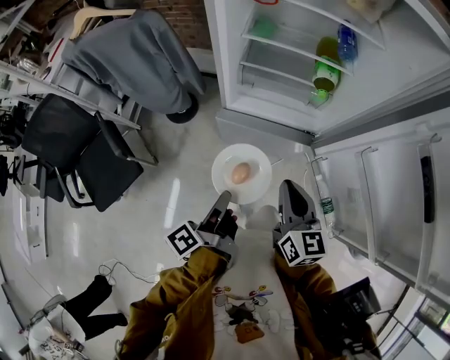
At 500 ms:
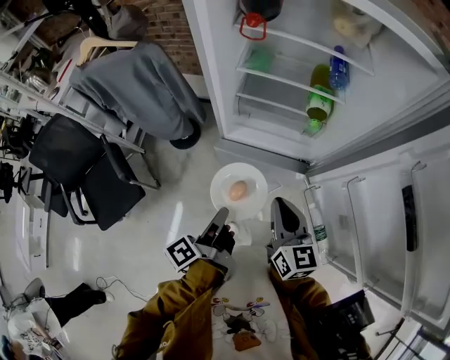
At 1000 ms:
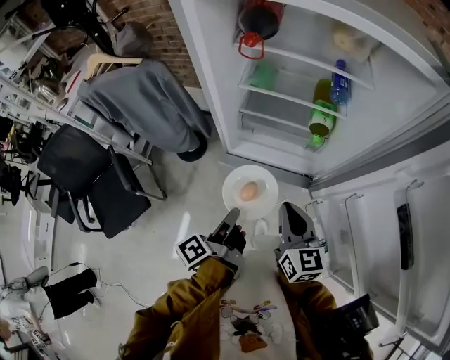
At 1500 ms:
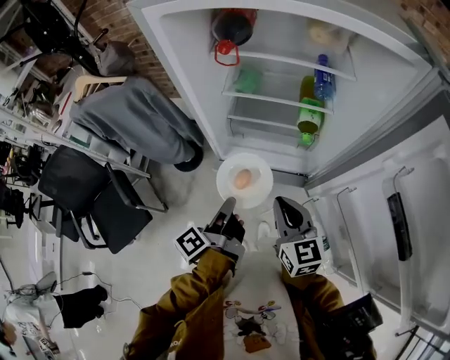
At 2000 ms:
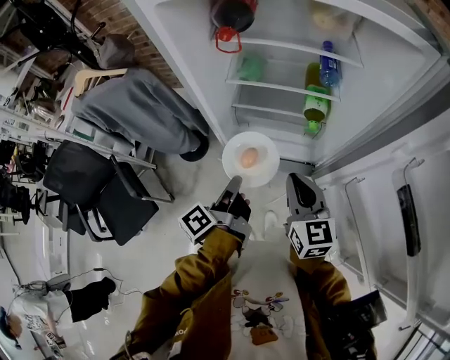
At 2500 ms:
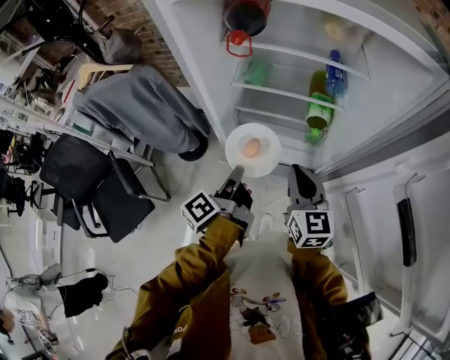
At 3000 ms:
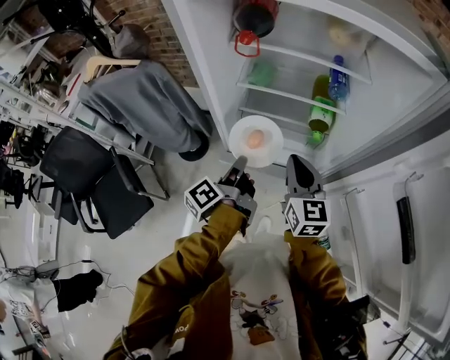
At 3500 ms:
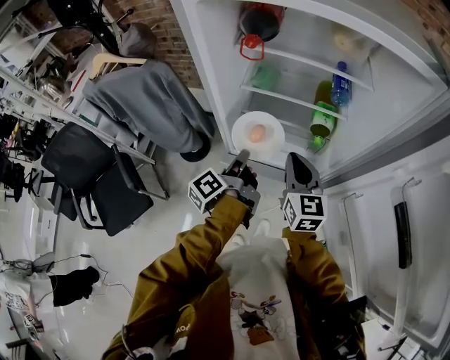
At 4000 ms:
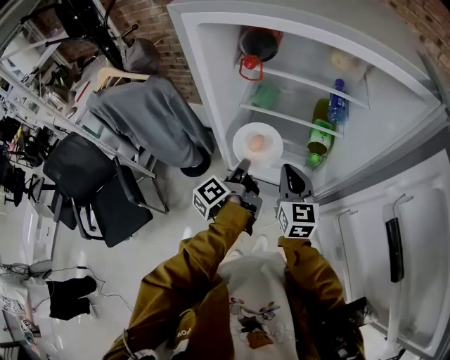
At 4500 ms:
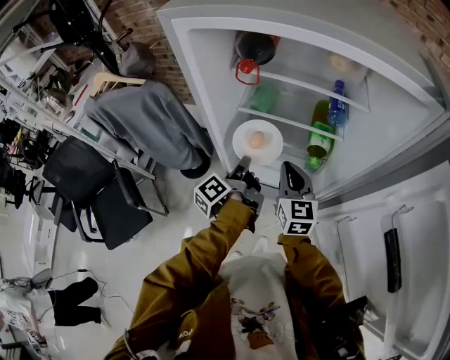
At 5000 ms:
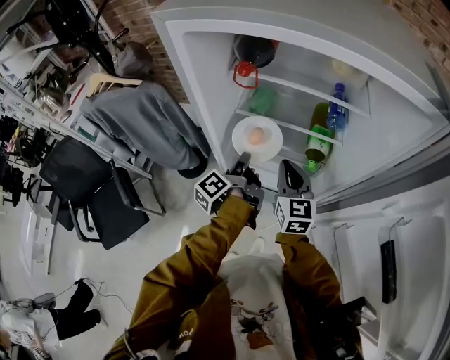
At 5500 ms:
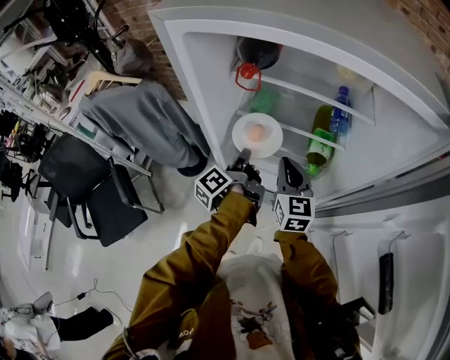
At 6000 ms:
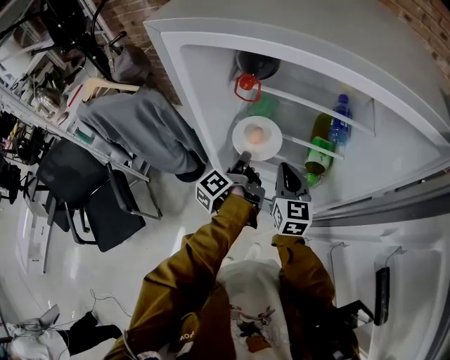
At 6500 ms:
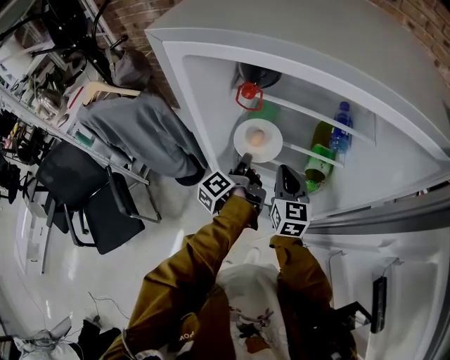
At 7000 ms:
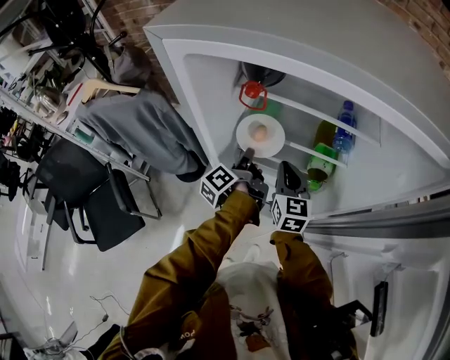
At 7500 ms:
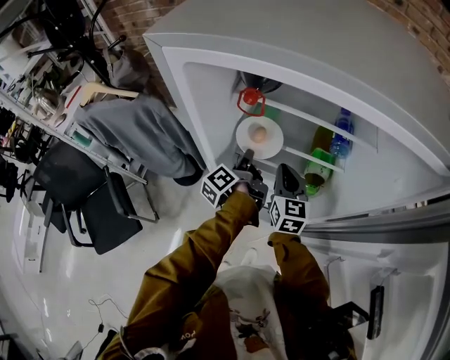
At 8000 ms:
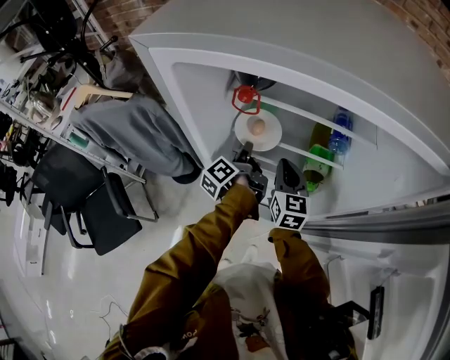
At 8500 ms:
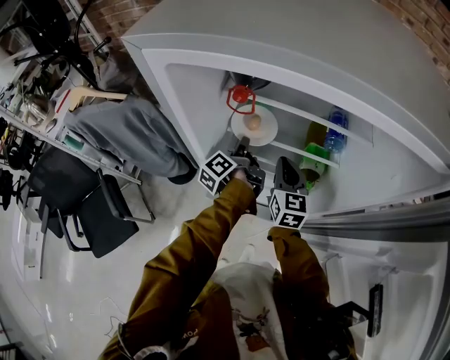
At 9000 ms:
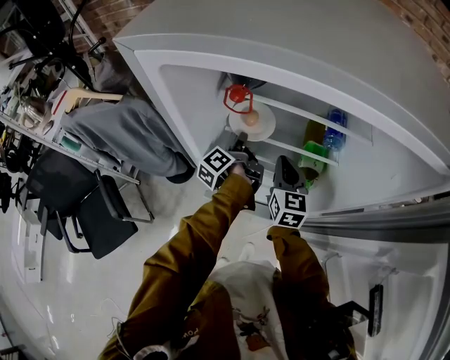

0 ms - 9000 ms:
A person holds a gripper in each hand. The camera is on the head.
0 ms - 2000 ms: The right gripper moves approximately 15 cm.
2000 ms - 4500 ms: The right gripper shifts by some 15 cm.
4500 ms - 7000 ms: The right gripper shifts by roughly 10 cm.

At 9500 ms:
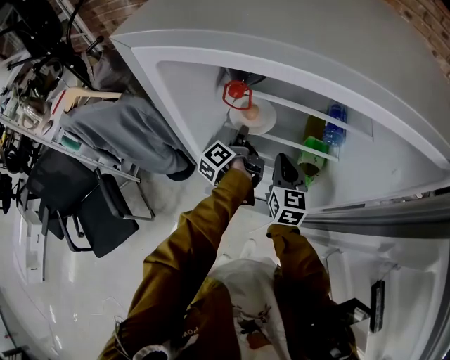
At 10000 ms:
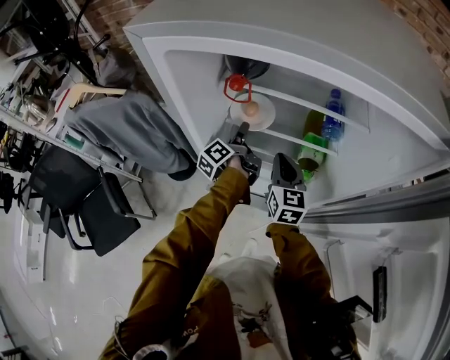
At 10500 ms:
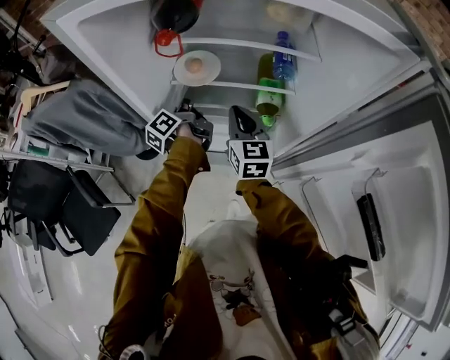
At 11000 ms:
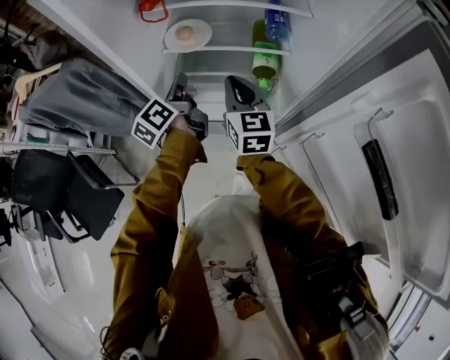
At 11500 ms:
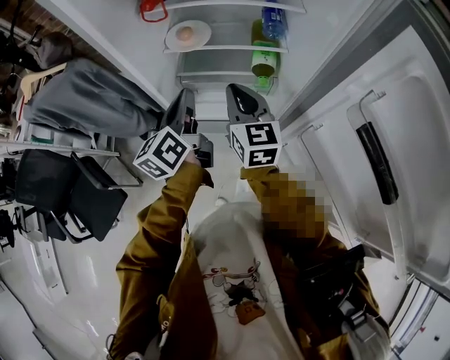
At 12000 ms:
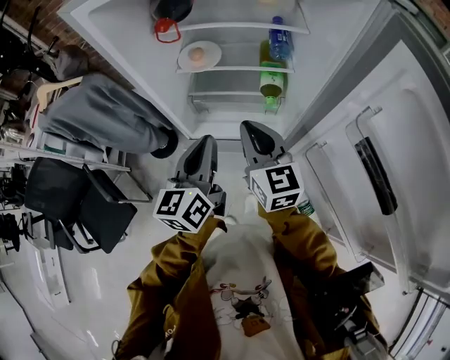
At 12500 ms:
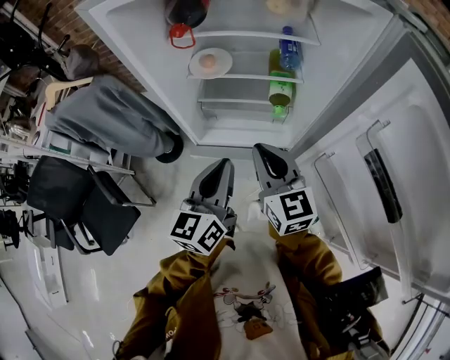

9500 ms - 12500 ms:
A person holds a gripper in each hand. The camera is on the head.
9500 ms - 11000 ms: The right gripper shifts by about 10 cm.
11000 ms - 12500 ms: The right gripper changes place by approximately 15 cm.

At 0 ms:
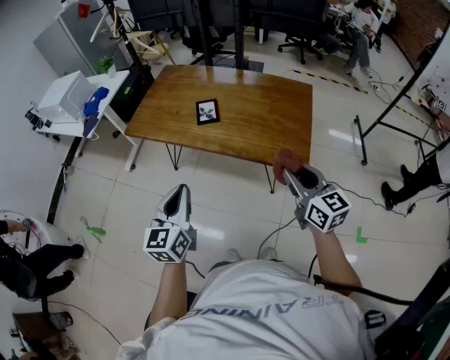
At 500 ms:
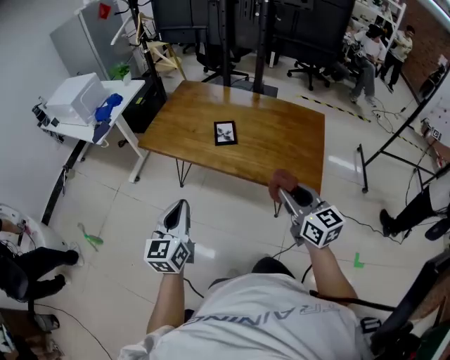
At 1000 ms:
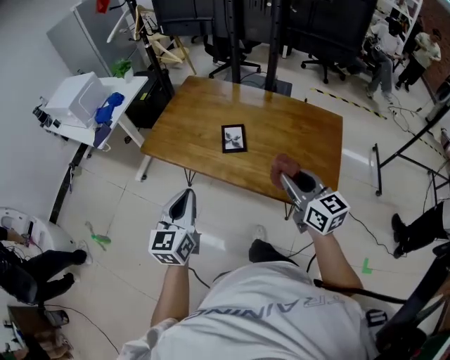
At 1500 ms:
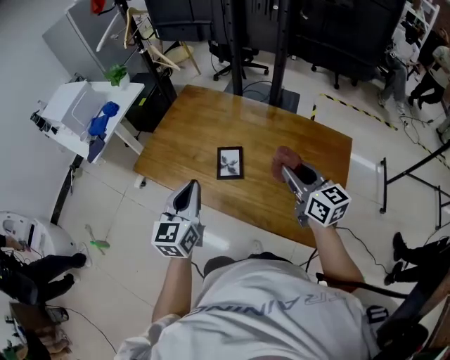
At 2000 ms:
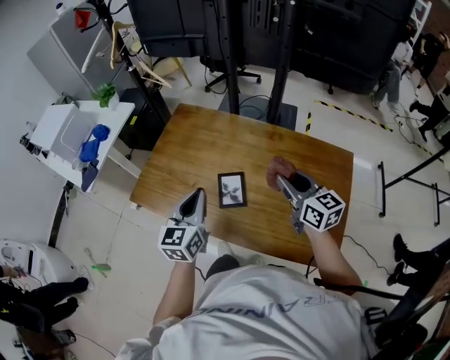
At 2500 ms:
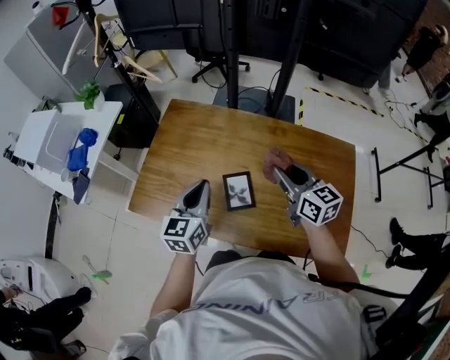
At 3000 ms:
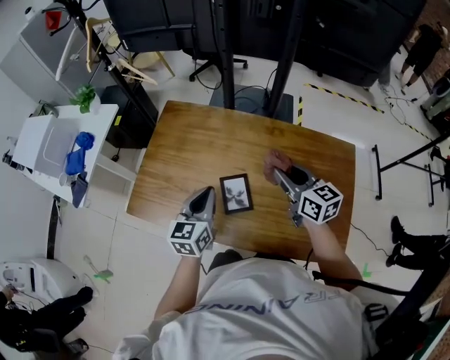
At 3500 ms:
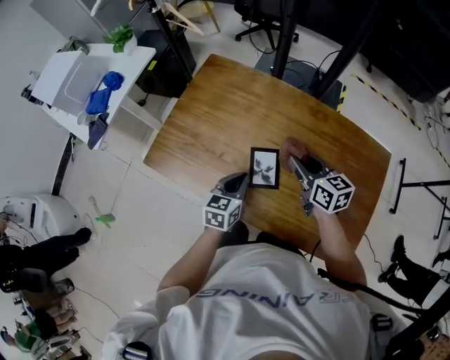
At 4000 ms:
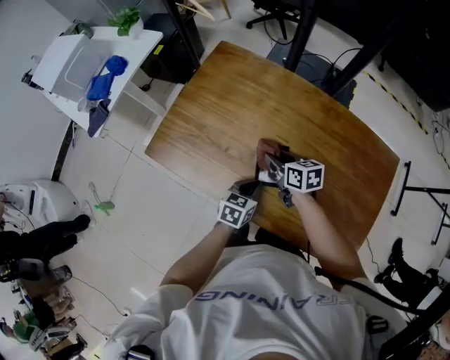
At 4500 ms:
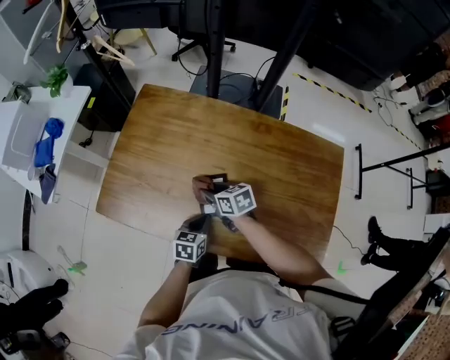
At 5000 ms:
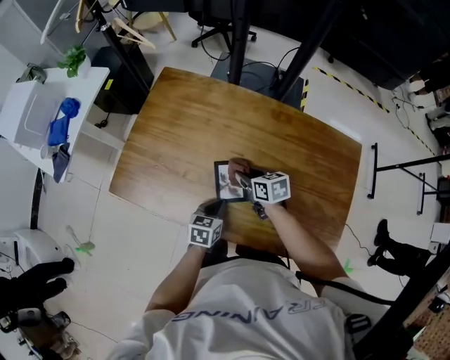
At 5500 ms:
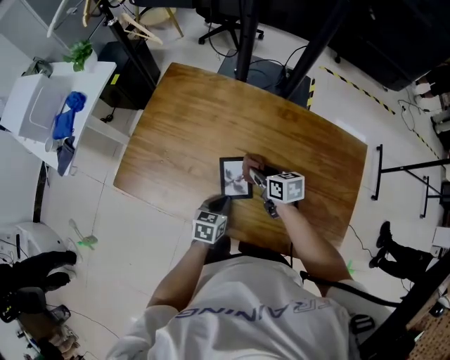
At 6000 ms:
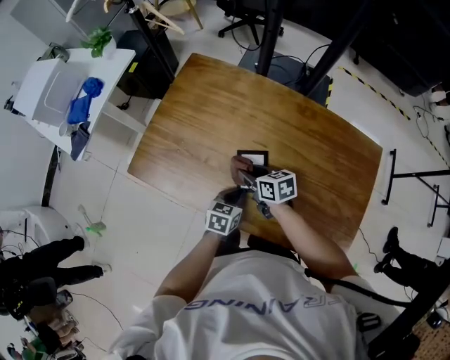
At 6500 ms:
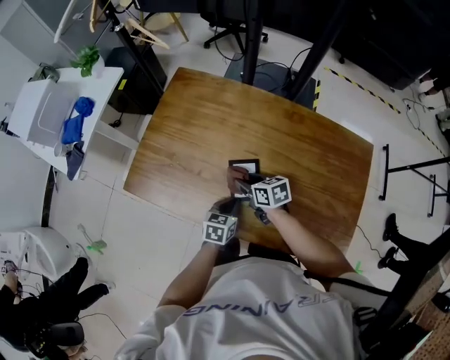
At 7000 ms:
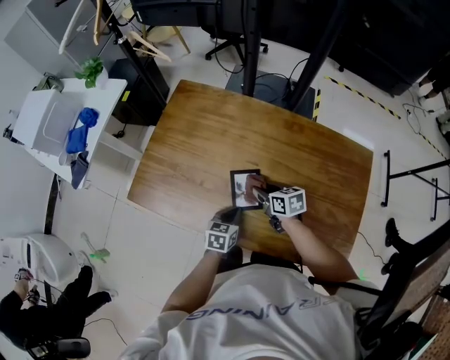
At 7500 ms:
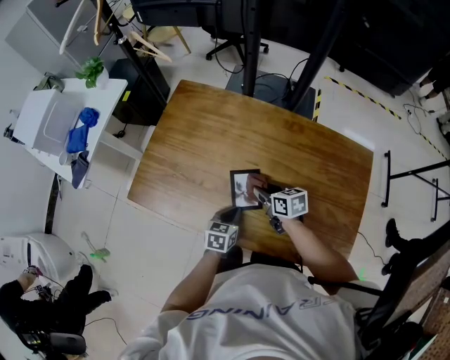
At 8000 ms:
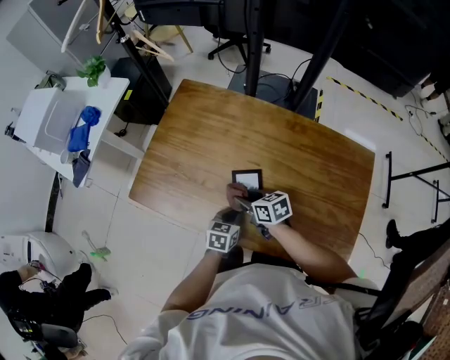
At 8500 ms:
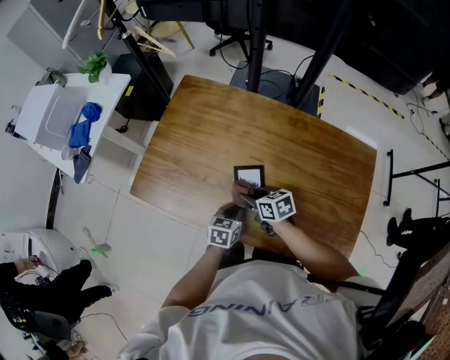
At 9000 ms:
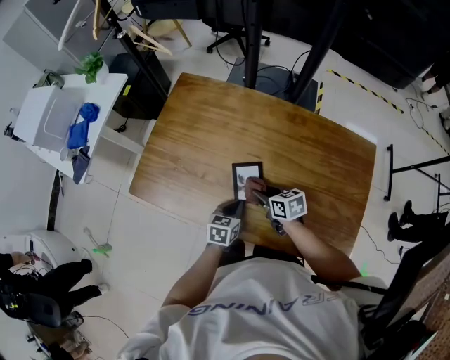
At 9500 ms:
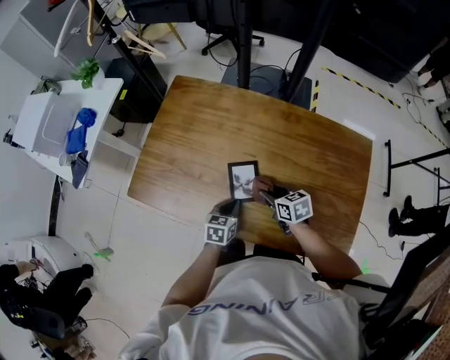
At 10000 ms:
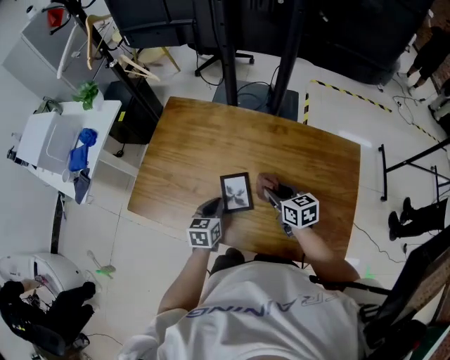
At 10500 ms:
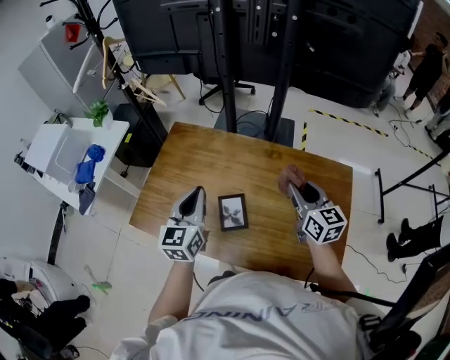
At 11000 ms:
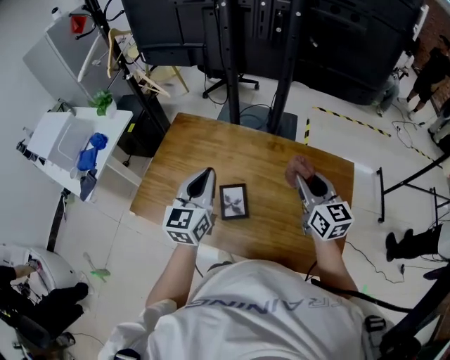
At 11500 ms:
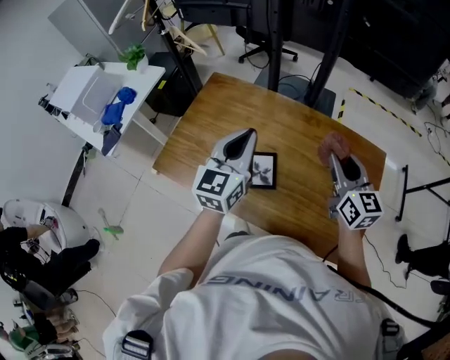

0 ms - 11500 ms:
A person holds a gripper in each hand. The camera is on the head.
0 ms - 2000 ms: Both grippers move forward, some 40 cm.
2000 ms - 4000 ms: The right gripper moves downward, to the left and forward, some 30 cm, and changes its angle by about 30 degrees, while the left gripper goes about 25 cm downward, and swivels roughly 40 degrees.
4000 ms - 6000 ms: The right gripper goes to the right and returns, roughly 10 cm each way.
6000 ms - 7500 ms: The right gripper goes approximately 5 cm to the right.
7500 ms - 9500 ms: The right gripper travels to the left and back again, some 10 cm each way.
9500 ms - 11500 ms: The left gripper goes approximately 35 cm upward, and tilts its fingers about 40 degrees upward, while the right gripper is displaced upward and to the right by about 30 cm, and tilts its fingers approximately 40 degrees upward.

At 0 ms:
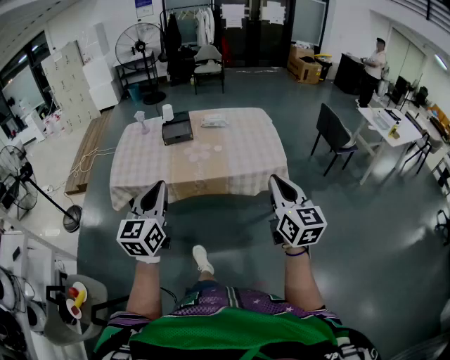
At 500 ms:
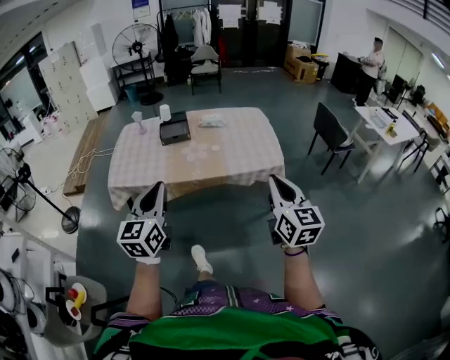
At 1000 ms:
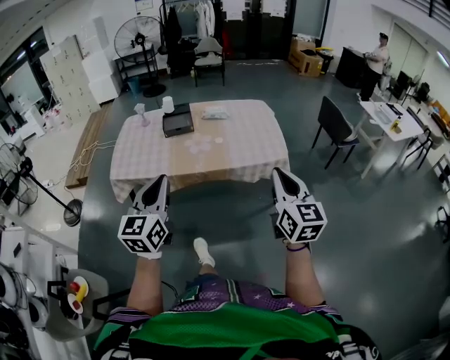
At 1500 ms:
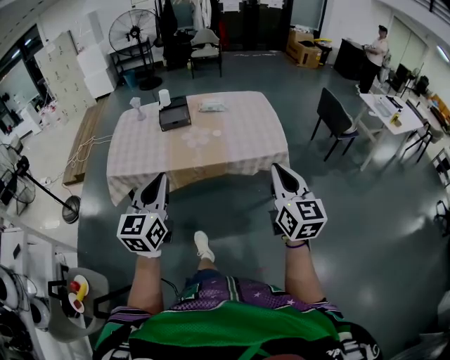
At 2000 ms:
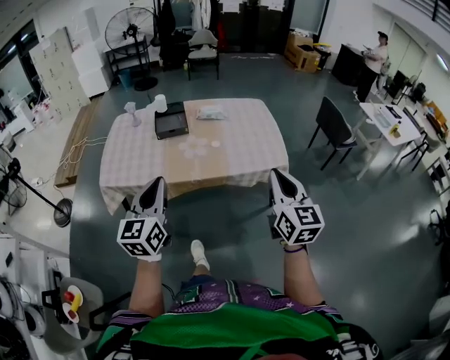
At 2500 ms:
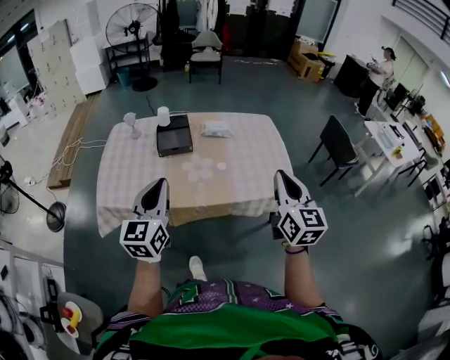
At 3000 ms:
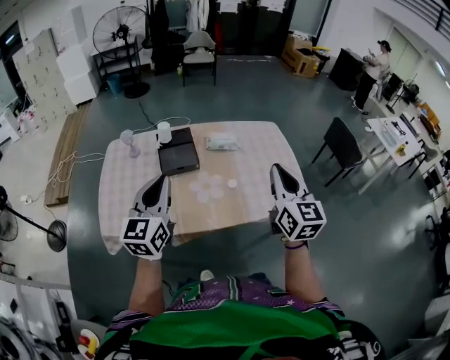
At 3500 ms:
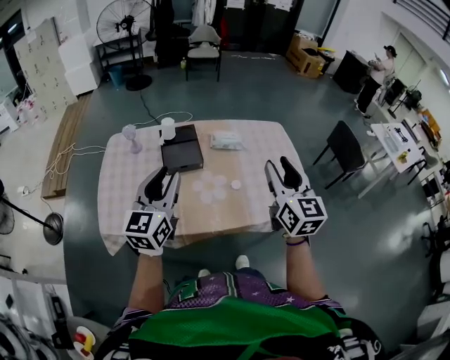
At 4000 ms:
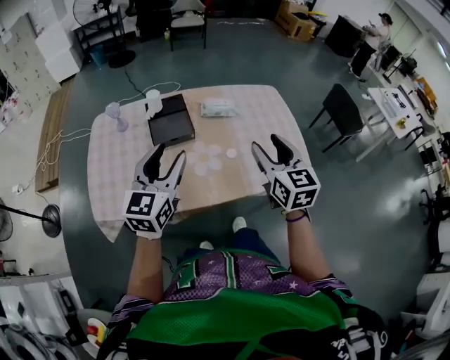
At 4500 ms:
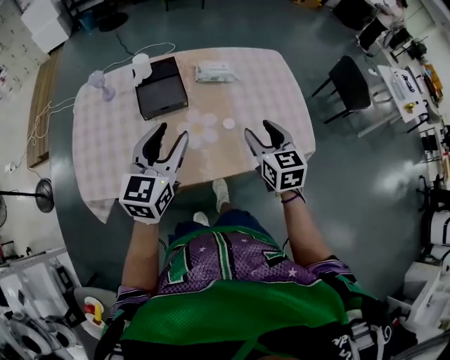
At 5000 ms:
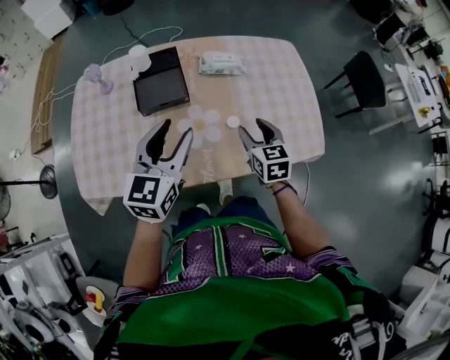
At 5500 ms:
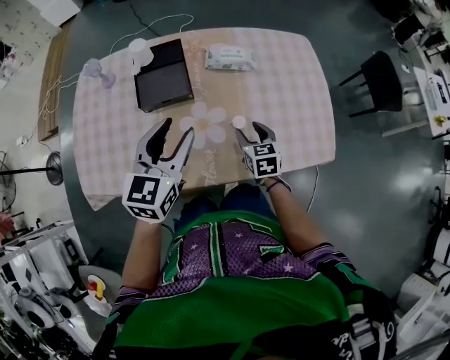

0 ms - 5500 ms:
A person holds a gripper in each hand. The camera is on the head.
0 ms - 2000 ms: Both grippers travel together forward, about 10 cm.
2000 ms - 3500 ms: The right gripper goes about 40 cm forward and to the left, and opens its fingers. The left gripper travels forward by about 35 cm, and opens its fingers.
3500 ms - 5500 ms: The left gripper goes approximately 25 cm downward, forward and to the right, and opens its fingers. The right gripper is displaced downward by some 40 cm, and tips its fingers downward by roughly 40 degrees.
